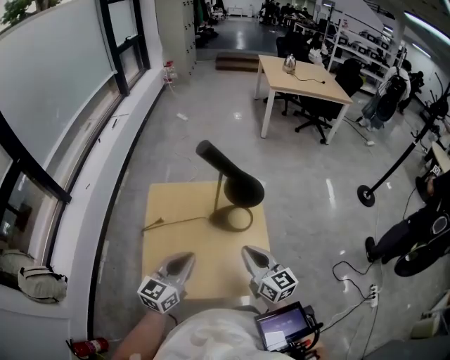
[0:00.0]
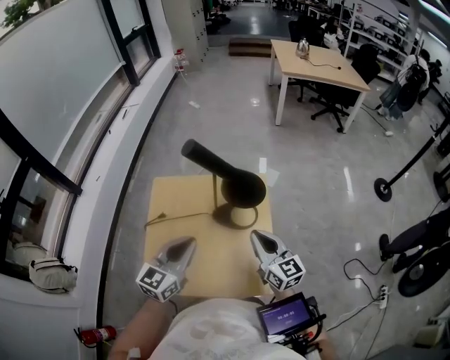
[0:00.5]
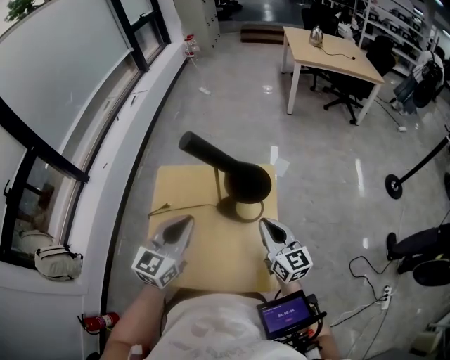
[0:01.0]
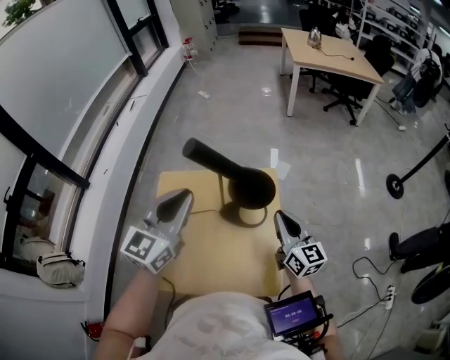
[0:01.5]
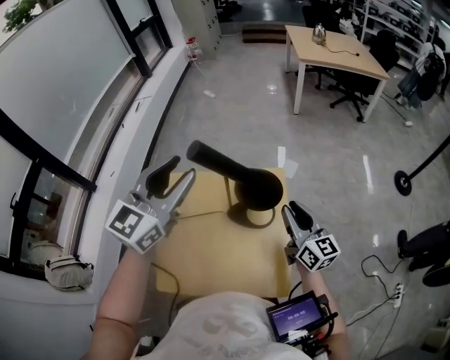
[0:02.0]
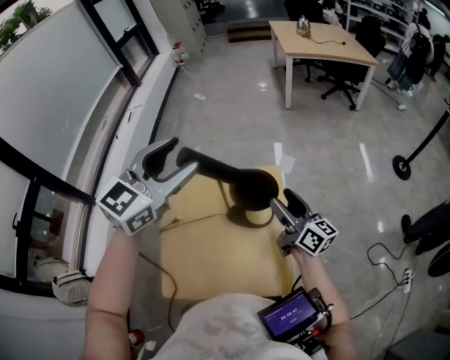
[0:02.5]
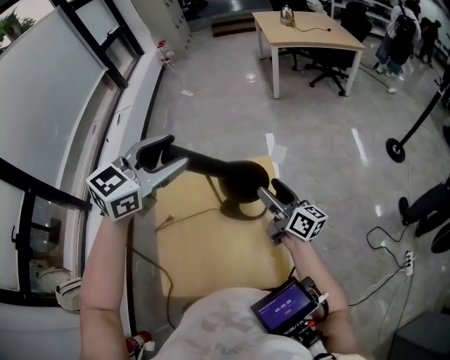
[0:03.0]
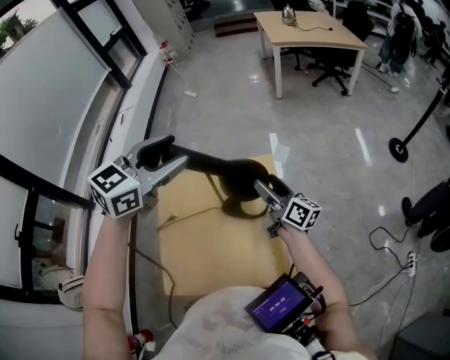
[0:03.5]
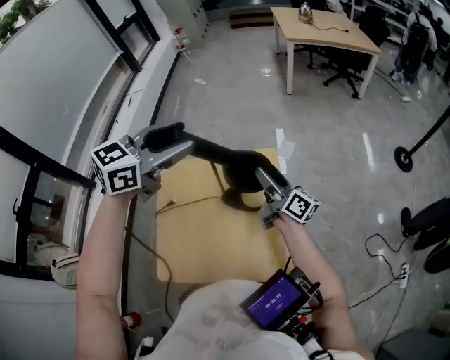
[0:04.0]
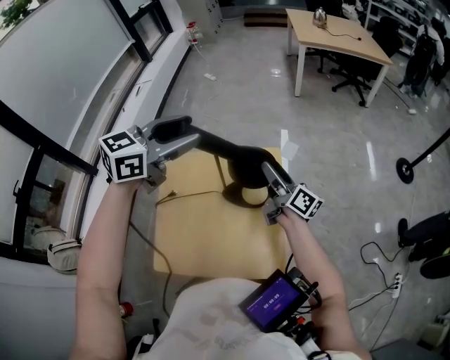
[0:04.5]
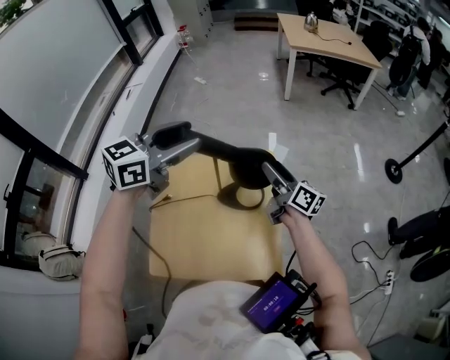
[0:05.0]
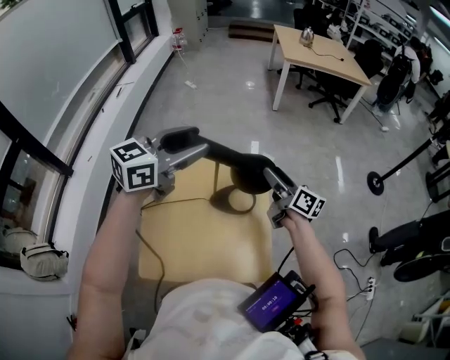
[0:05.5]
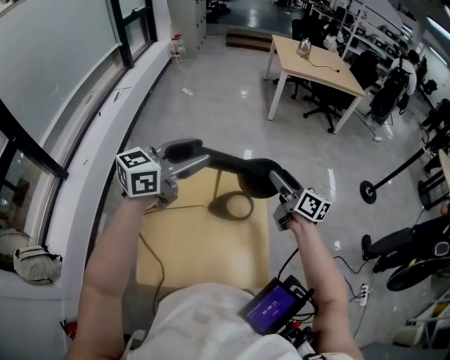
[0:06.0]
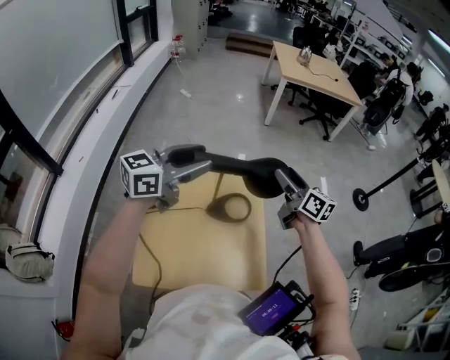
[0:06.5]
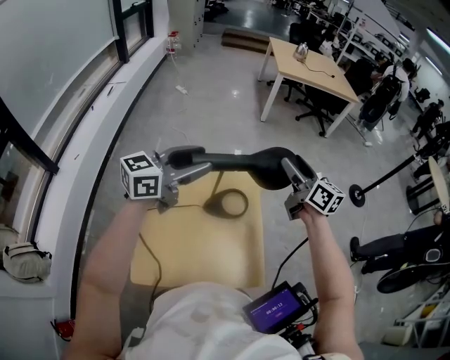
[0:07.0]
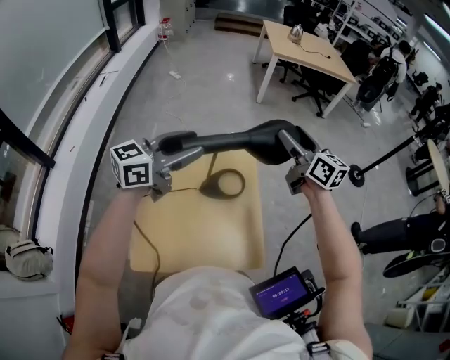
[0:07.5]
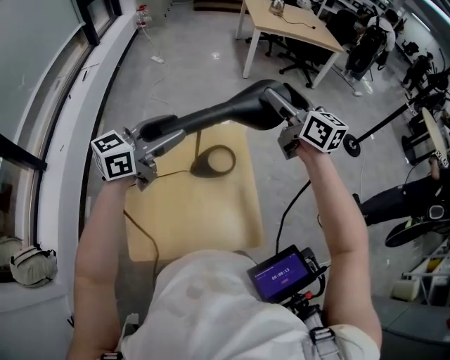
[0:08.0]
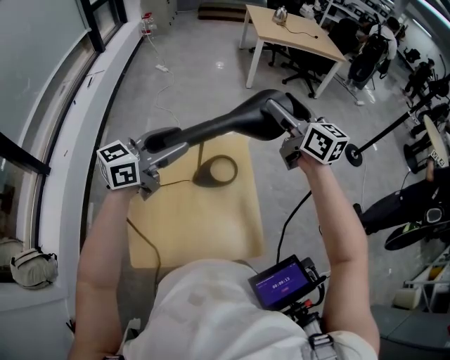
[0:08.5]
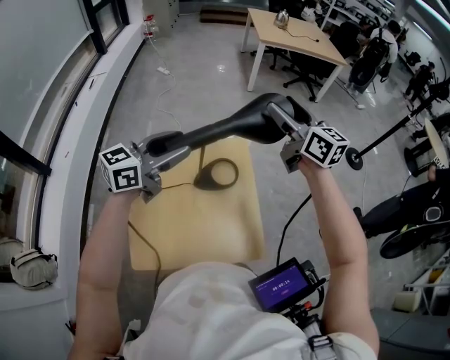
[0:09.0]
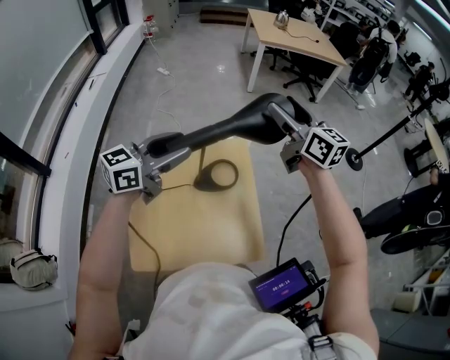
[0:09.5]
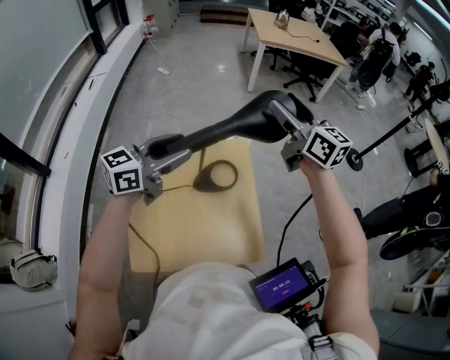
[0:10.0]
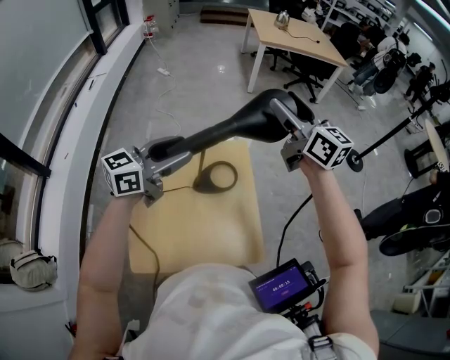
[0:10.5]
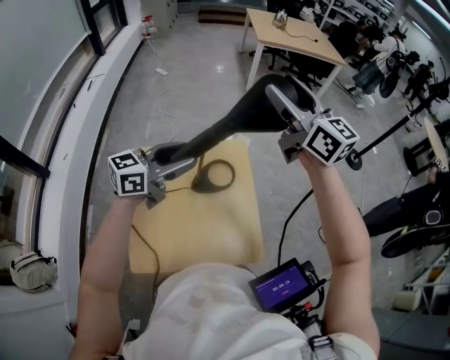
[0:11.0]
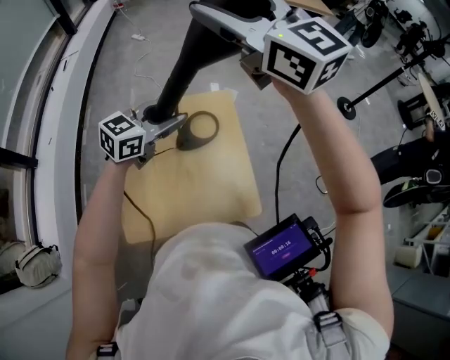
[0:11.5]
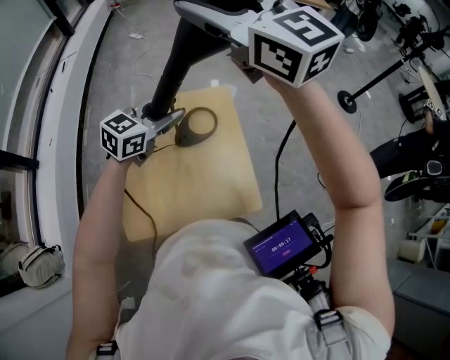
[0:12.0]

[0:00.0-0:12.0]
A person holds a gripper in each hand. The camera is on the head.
0.0 to 2.0 s: The right gripper is displaced forward and to the right by approximately 20 cm. The left gripper shifts some 30 cm upward and forward, swivels roughly 20 degrees, and opens.
2.0 to 4.0 s: The right gripper shifts some 5 cm forward, rotates about 40 degrees, and opens up; the left gripper ends up approximately 5 cm from where it was, and turns by approximately 30 degrees.
4.0 to 6.0 s: The right gripper shifts by approximately 5 cm, and turns by approximately 20 degrees.
6.0 to 8.0 s: The right gripper is displaced upward by roughly 15 cm, and turns by roughly 20 degrees.
8.0 to 10.0 s: The grippers move only a little.
10.0 to 12.0 s: The right gripper is displaced upward, to the left and backward by about 20 cm, and swivels some 30 degrees; the left gripper heads downward and to the right, covering some 10 cm.

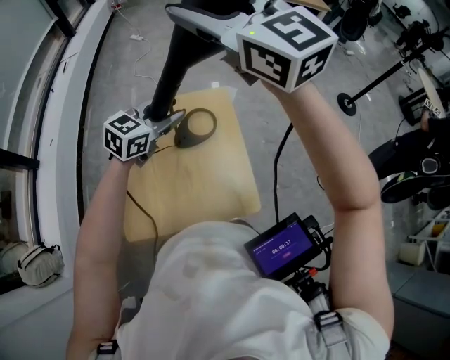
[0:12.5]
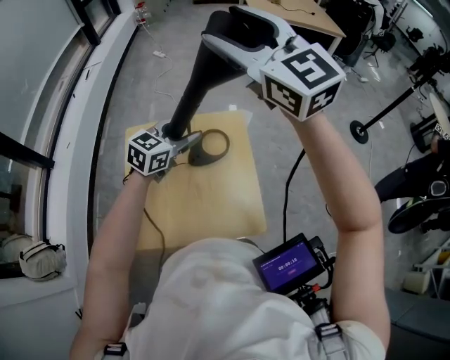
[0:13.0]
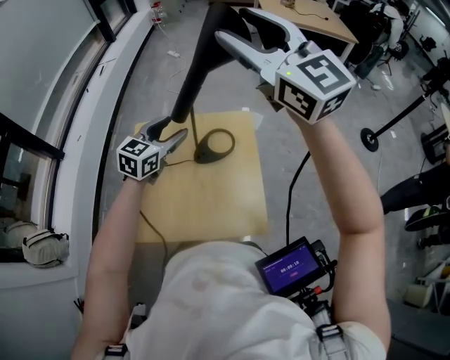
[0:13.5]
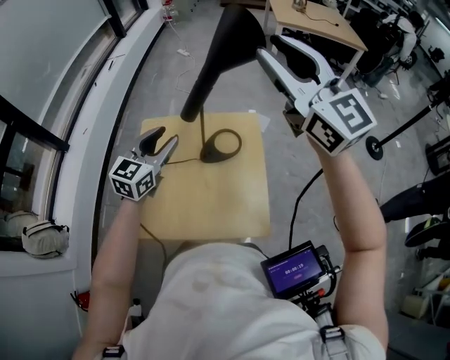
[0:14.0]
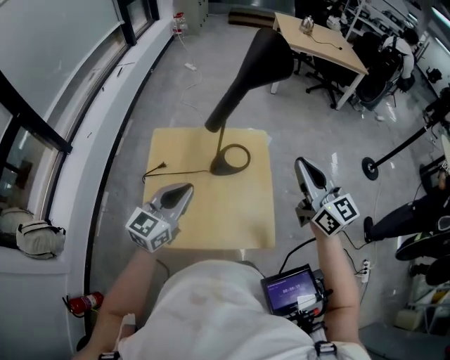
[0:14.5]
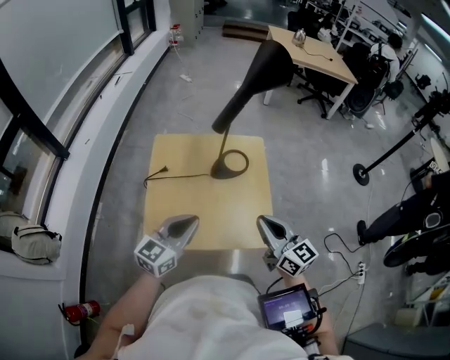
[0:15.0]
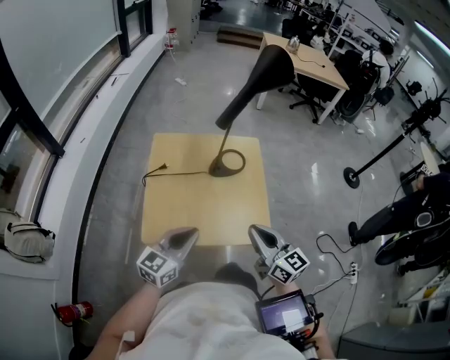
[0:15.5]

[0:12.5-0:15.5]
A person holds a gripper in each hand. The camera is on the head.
12.5 to 14.0 s: The right gripper heads to the right and backward, covering some 10 cm. The left gripper is displaced to the left and backward by some 10 cm, and rotates approximately 30 degrees.
14.0 to 15.5 s: The left gripper heads backward, covering approximately 25 cm, and closes; the right gripper goes about 40 cm downward and backward, and swivels approximately 40 degrees.

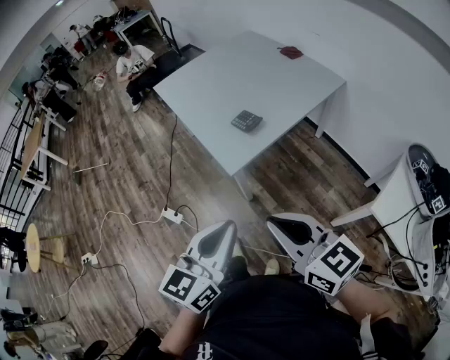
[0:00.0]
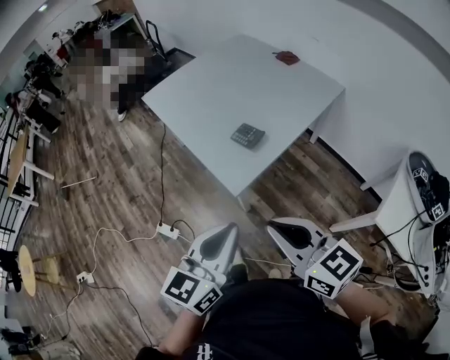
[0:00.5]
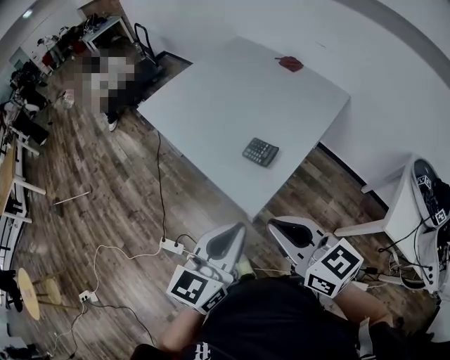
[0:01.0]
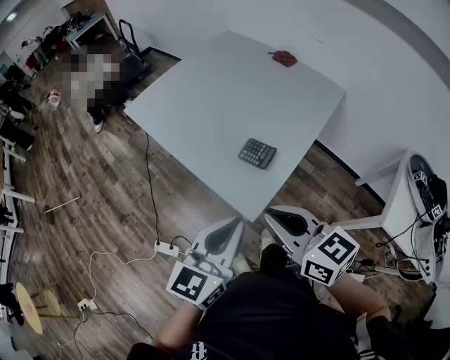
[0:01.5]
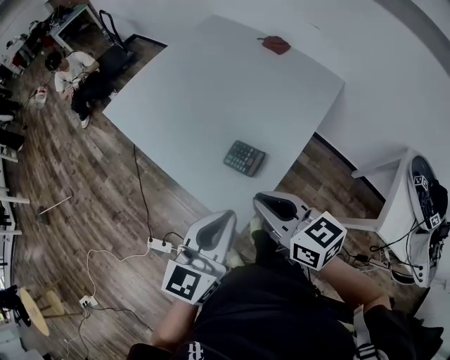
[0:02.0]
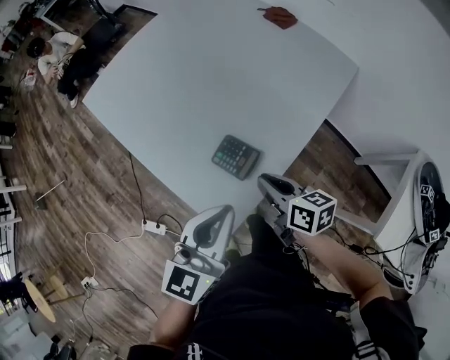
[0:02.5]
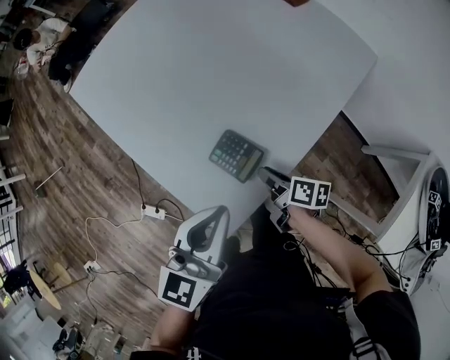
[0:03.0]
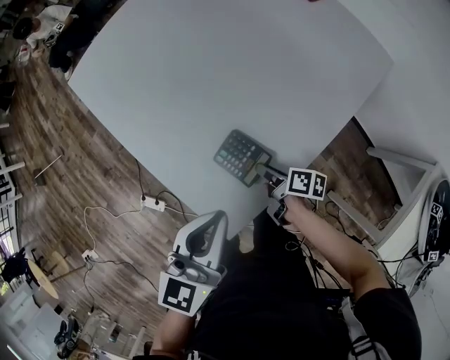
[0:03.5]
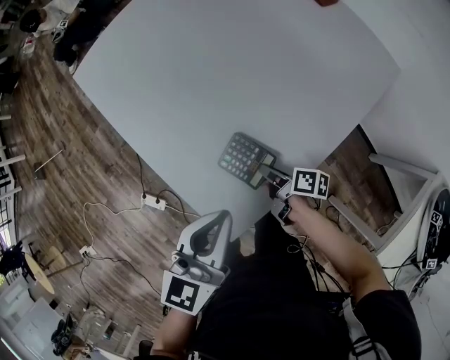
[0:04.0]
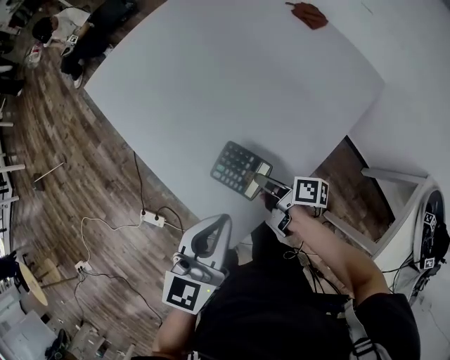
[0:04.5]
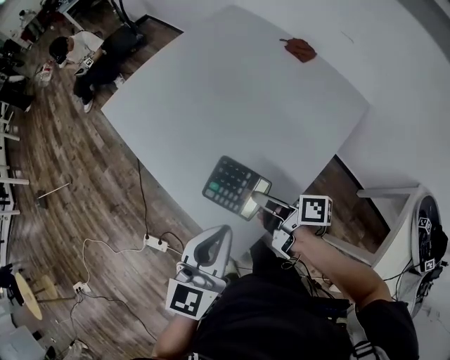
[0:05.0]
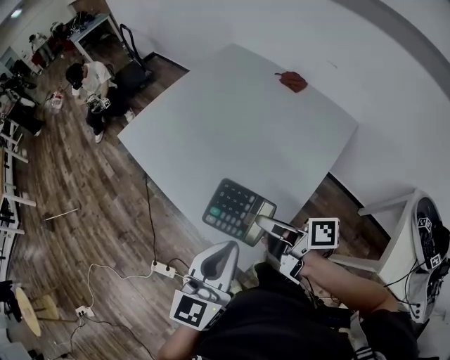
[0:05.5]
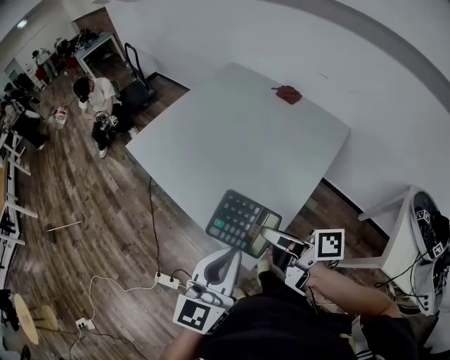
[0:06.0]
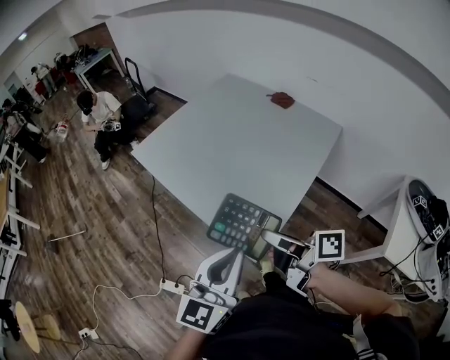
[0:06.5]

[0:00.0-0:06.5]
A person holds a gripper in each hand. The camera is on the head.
0.0 to 2.0 s: Both grippers move forward, about 35 cm.
2.0 to 4.5 s: The right gripper is displaced downward and forward by about 30 cm, and rotates around the line of its fingers by some 60 degrees, clockwise from behind; the left gripper goes some 15 cm forward and downward.
4.5 to 6.5 s: The right gripper goes about 30 cm upward and backward, and changes its angle by roughly 30 degrees. Meanwhile the left gripper is displaced backward, upward and to the left by about 20 cm.

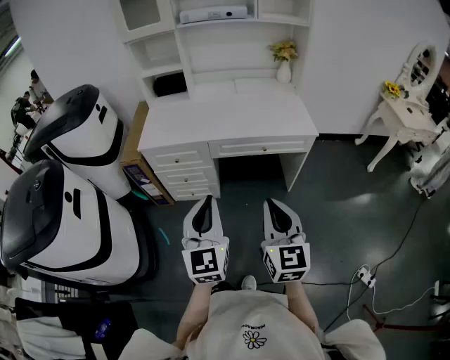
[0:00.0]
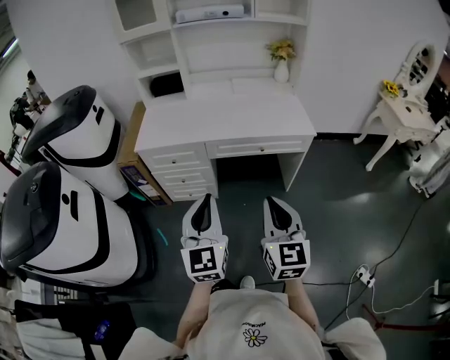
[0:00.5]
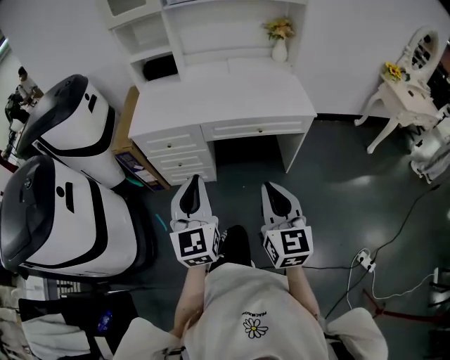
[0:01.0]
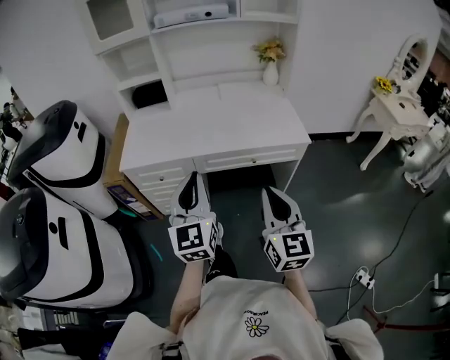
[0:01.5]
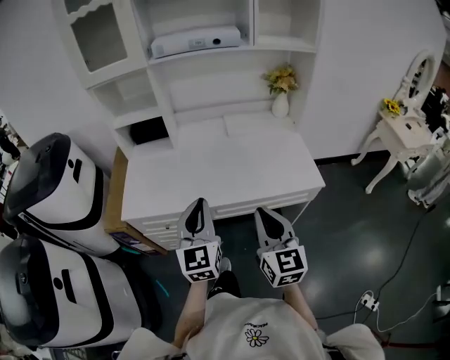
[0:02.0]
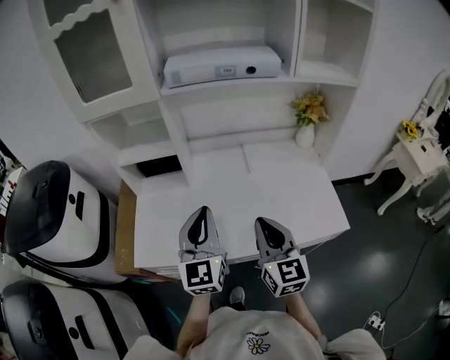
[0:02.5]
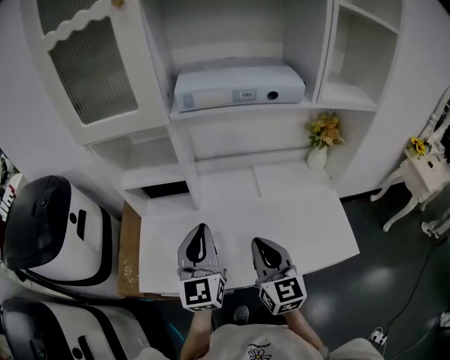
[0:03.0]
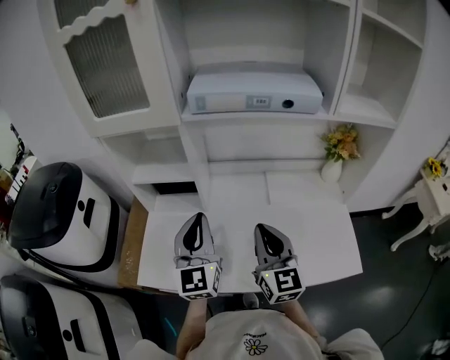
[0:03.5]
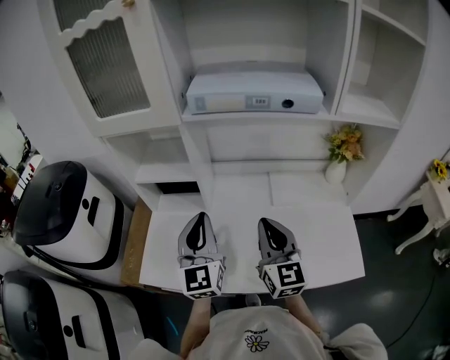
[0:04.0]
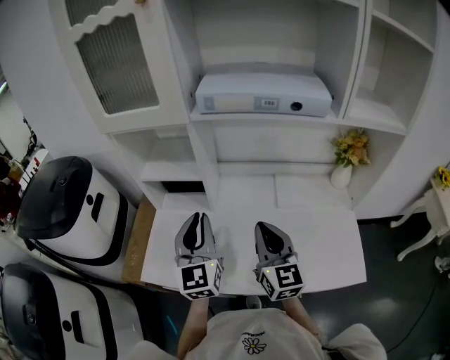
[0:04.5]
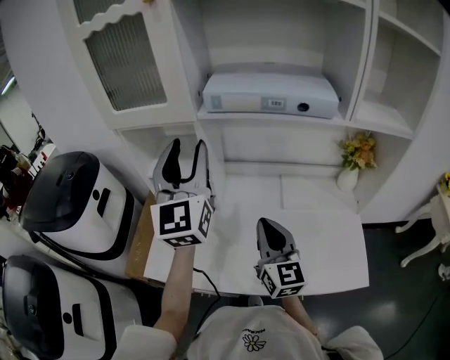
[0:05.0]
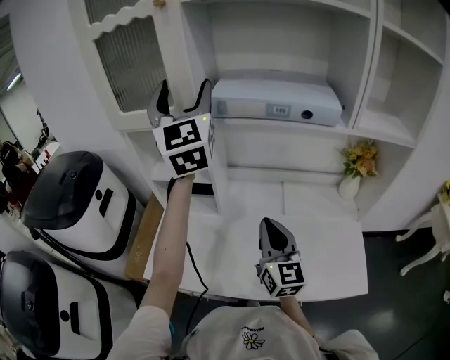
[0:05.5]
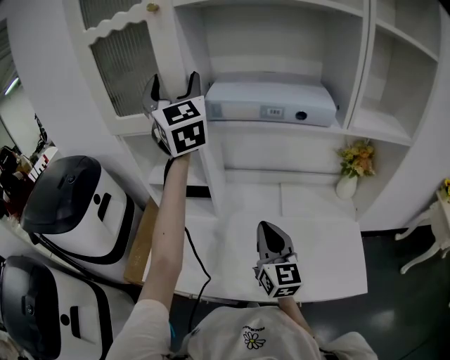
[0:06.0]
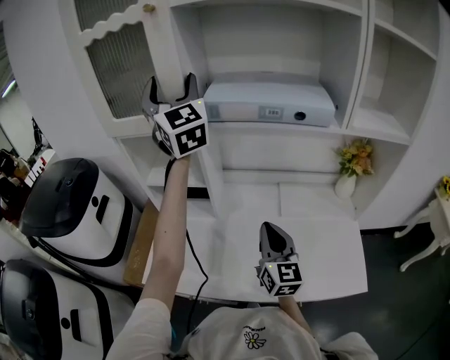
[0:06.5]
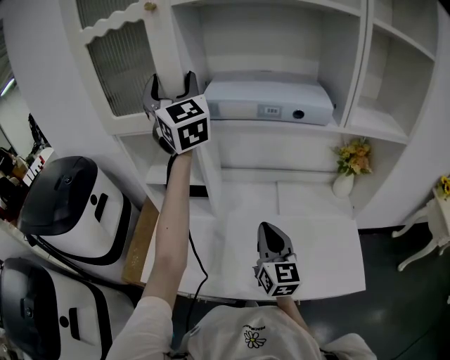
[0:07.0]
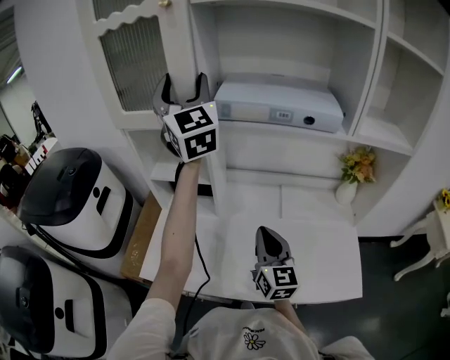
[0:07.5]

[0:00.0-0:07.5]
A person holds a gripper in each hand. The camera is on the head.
0.0 to 2.0 s: Both grippers move forward, about 30 cm.
2.0 to 4.0 s: The two grippers go roughly 30 cm forward.
4.0 to 5.5 s: The left gripper shifts approximately 30 cm upward and forward, changes its angle by about 20 degrees, and opens up.
5.5 to 7.5 s: The grippers stay close to where they were, moving slightly.
